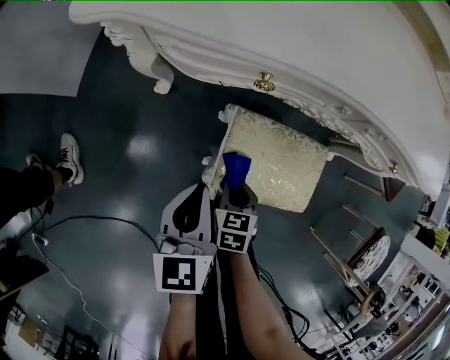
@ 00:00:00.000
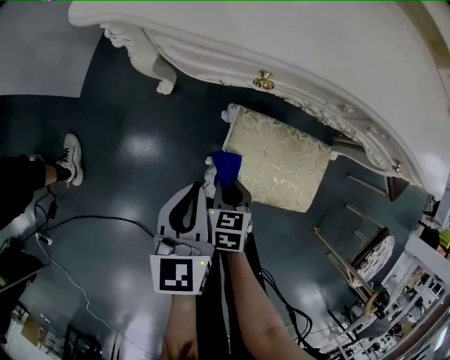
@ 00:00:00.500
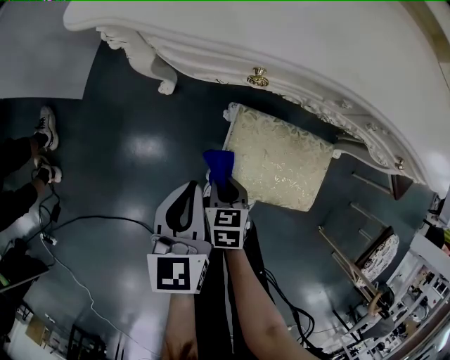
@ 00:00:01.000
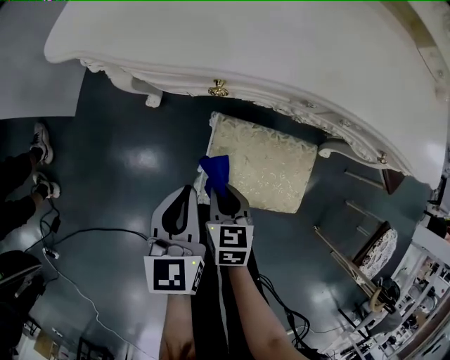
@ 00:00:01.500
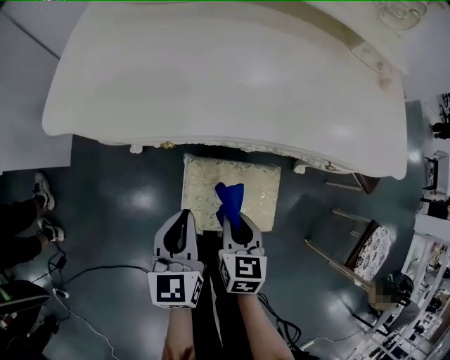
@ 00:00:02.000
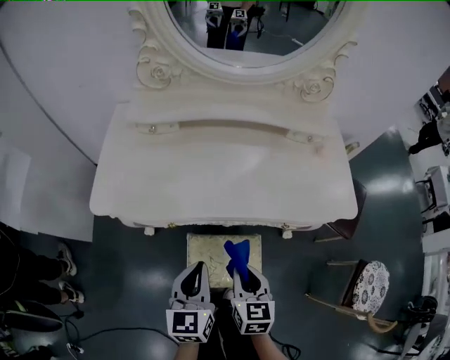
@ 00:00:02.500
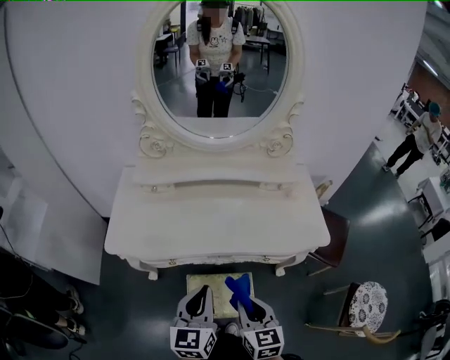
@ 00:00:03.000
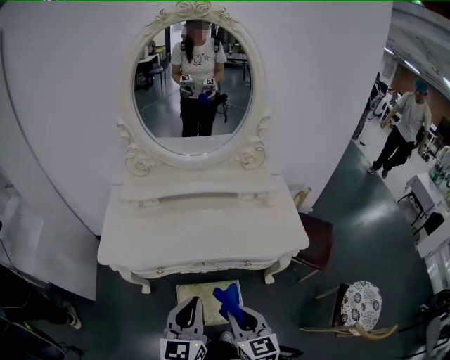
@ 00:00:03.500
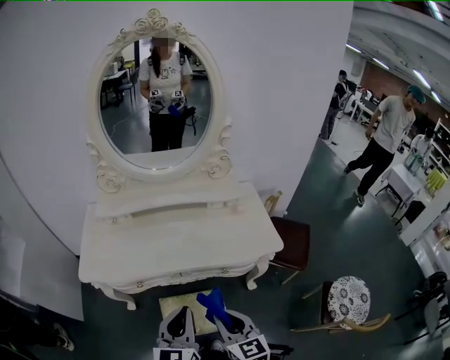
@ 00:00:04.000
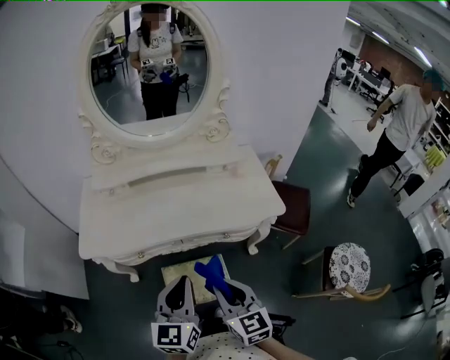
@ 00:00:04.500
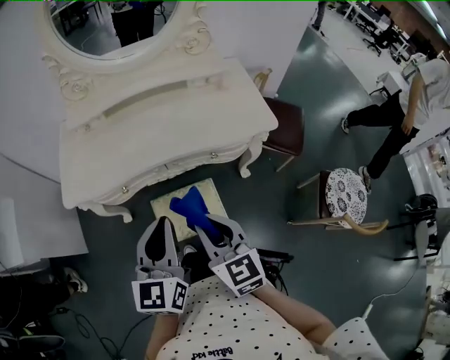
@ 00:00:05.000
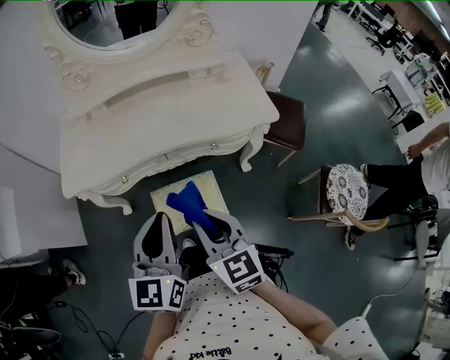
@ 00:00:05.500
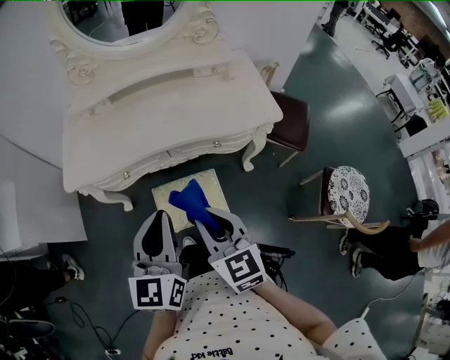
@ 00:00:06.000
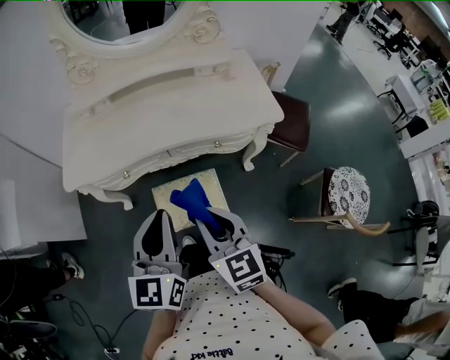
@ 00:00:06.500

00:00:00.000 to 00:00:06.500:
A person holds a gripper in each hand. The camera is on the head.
00:00:00.000 to 00:00:02.000: The right gripper heads upward and to the right, covering some 20 cm, and changes its angle by approximately 20 degrees. The left gripper shifts some 10 cm to the right and upward.
00:00:02.000 to 00:00:04.500: The left gripper travels upward and to the right by approximately 40 cm, and turns by about 30 degrees, while the right gripper moves upward, approximately 35 cm, and turns by approximately 30 degrees.
00:00:04.500 to 00:00:06.500: The left gripper ends up about 5 cm from where it was.

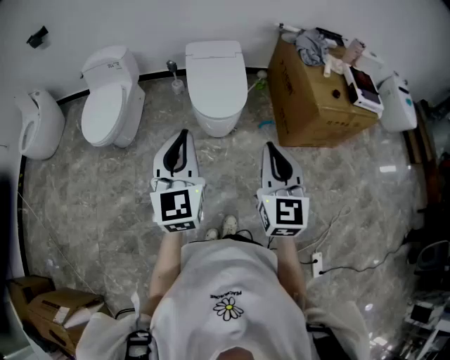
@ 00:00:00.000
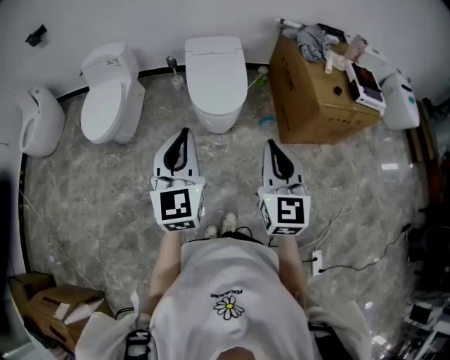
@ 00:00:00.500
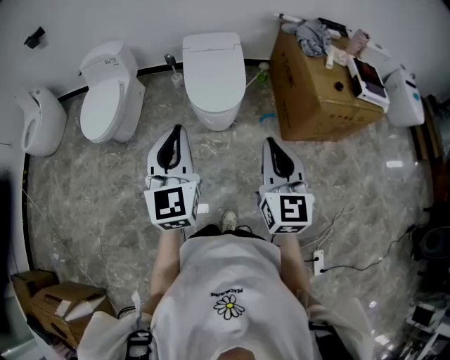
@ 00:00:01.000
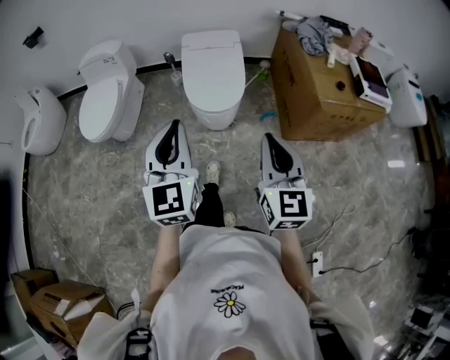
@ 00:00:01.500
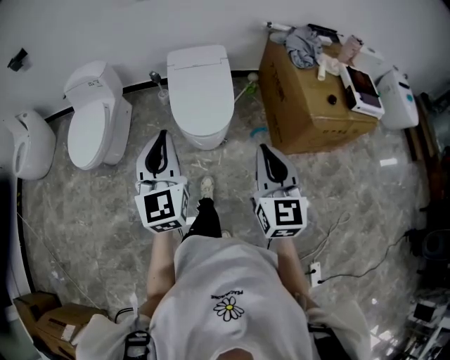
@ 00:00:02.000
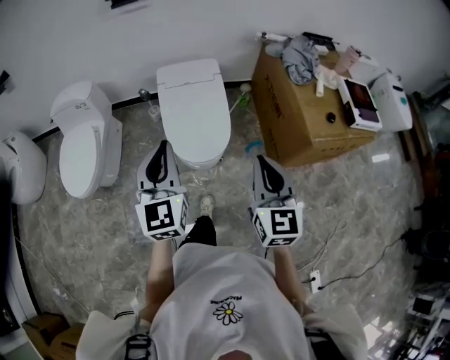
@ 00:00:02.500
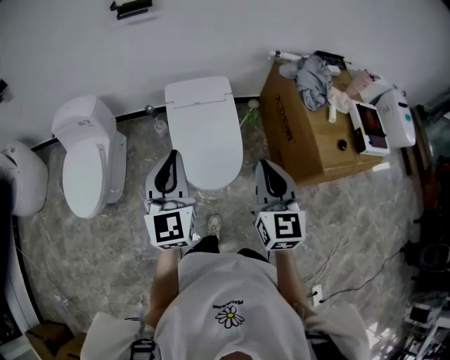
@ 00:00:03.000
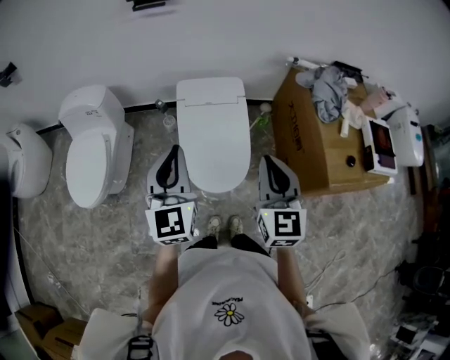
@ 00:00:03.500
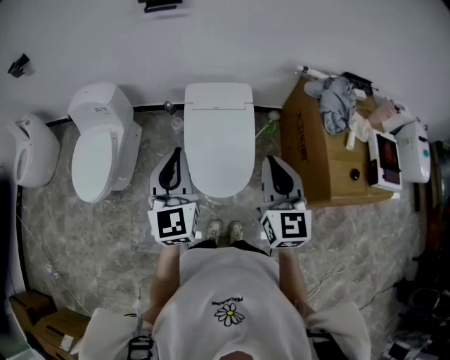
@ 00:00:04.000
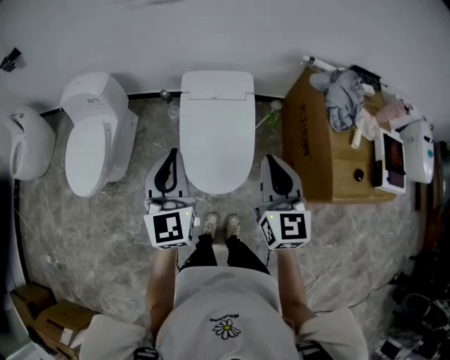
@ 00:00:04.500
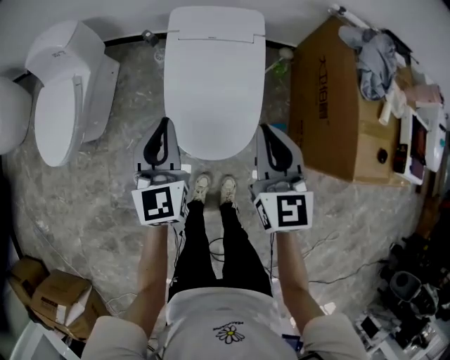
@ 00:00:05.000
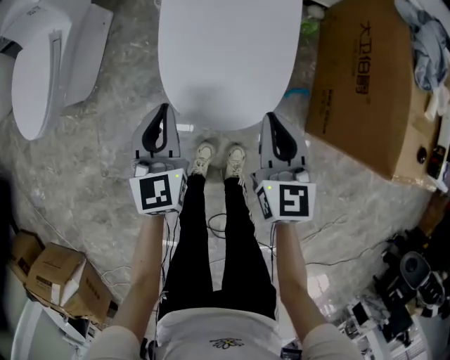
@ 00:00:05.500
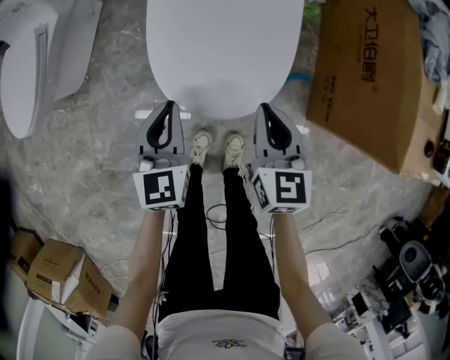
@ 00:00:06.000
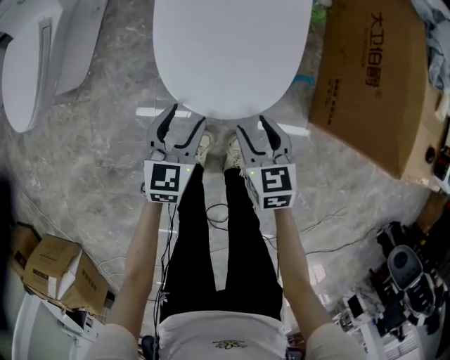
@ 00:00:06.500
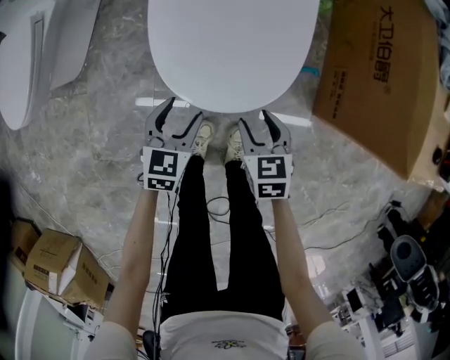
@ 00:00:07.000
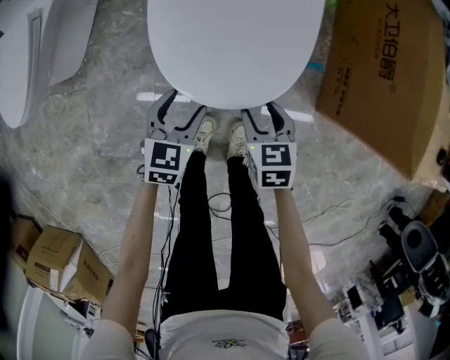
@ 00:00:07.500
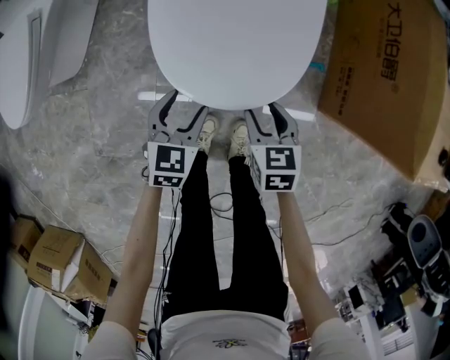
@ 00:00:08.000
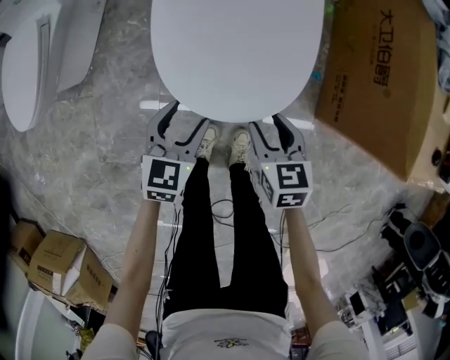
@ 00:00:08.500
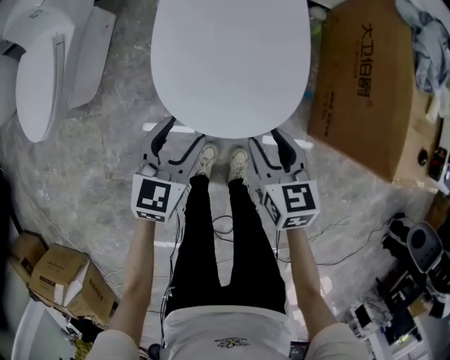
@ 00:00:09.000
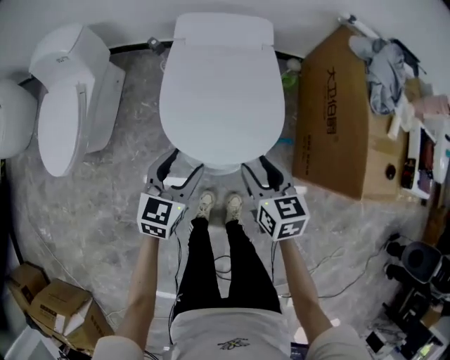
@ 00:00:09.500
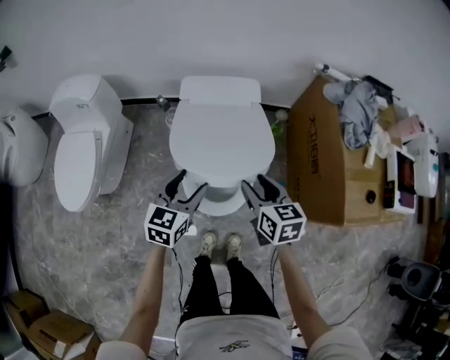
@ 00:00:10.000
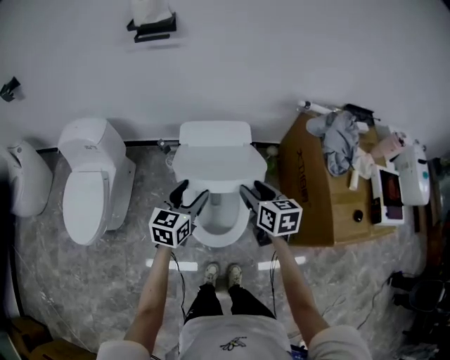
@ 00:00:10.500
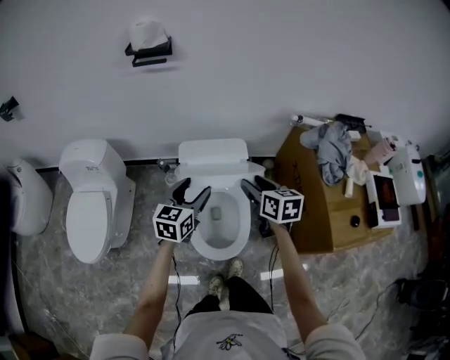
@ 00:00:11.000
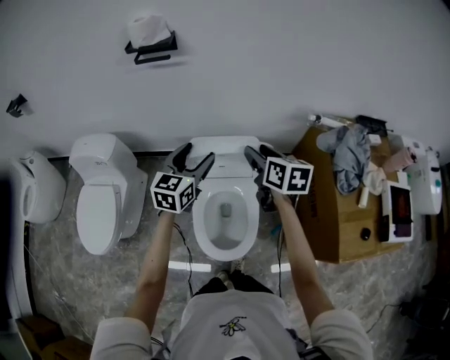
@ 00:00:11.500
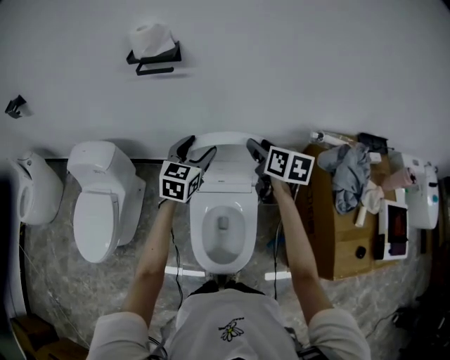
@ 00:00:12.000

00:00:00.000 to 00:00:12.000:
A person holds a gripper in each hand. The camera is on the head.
00:00:00.000 to 00:00:02.000: The left gripper moves forward, about 15 cm. The right gripper shifts about 15 cm forward and to the right.
00:00:02.000 to 00:00:04.000: The two grippers go roughly 30 cm forward.
00:00:04.000 to 00:00:06.000: Both grippers move downward, approximately 40 cm. The right gripper turns by roughly 30 degrees. Meanwhile the left gripper changes its angle by some 30 degrees.
00:00:06.000 to 00:00:08.000: Both grippers travel together downward, roughly 15 cm. The right gripper swivels roughly 20 degrees, and opens. Meanwhile the left gripper turns by some 20 degrees, and opens up.
00:00:08.000 to 00:00:10.000: The two grippers go roughly 30 cm upward. The right gripper changes its angle by approximately 20 degrees.
00:00:10.000 to 00:00:12.000: The grippers both shift forward and upward by approximately 40 cm.

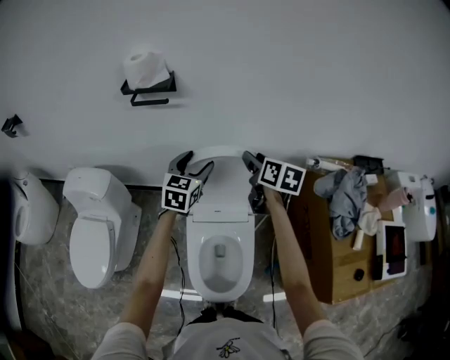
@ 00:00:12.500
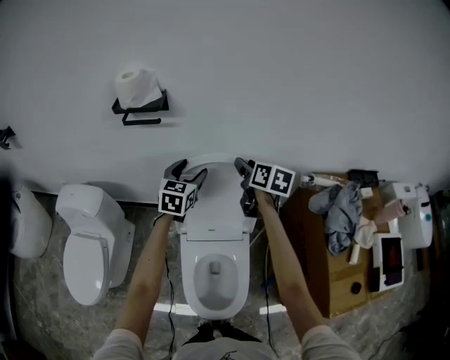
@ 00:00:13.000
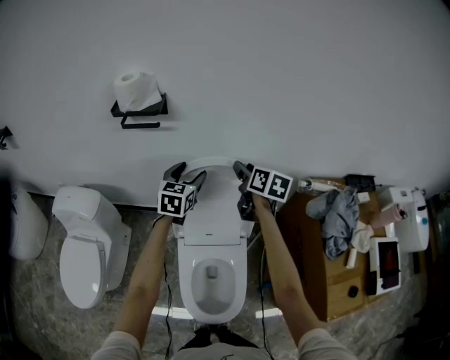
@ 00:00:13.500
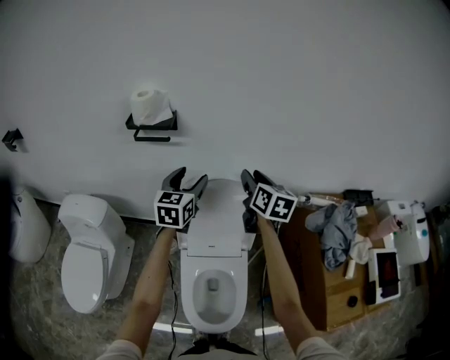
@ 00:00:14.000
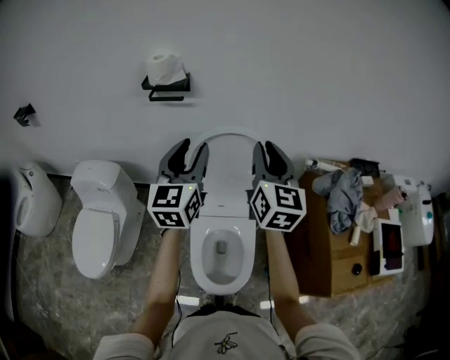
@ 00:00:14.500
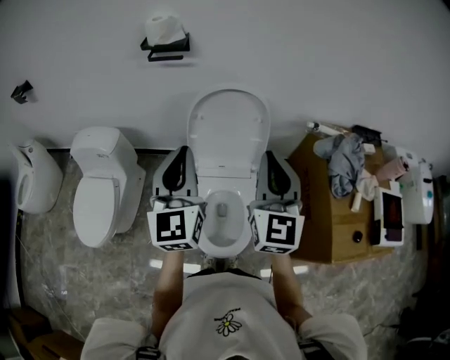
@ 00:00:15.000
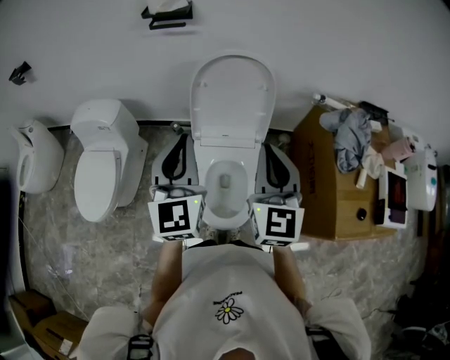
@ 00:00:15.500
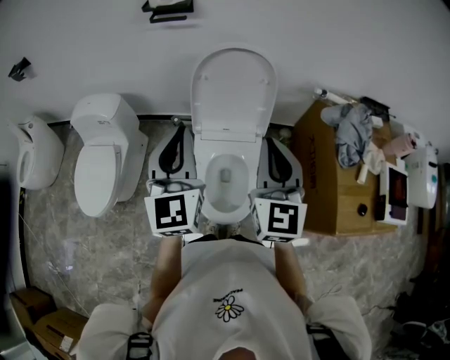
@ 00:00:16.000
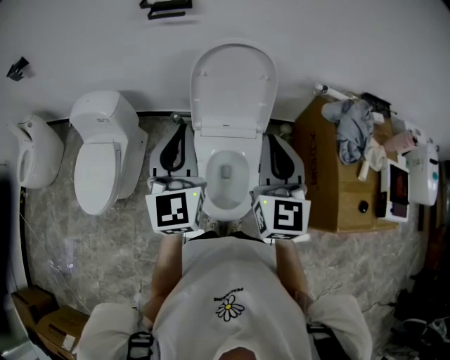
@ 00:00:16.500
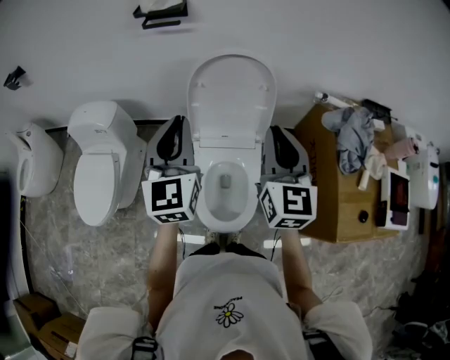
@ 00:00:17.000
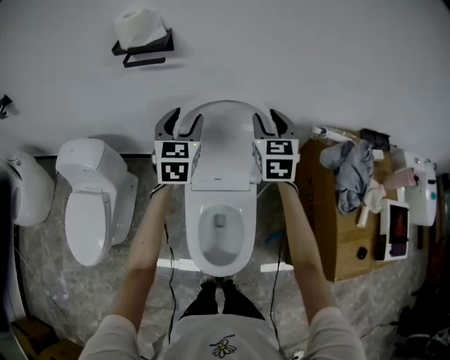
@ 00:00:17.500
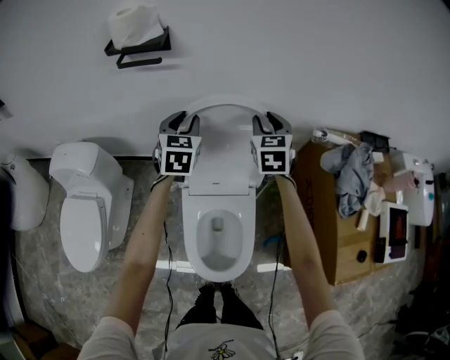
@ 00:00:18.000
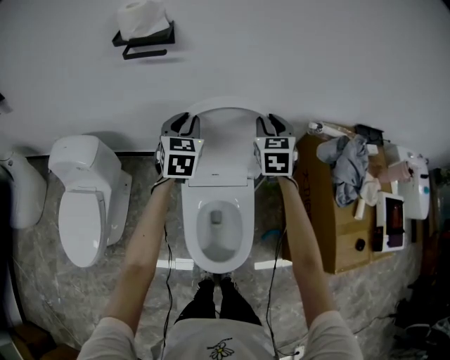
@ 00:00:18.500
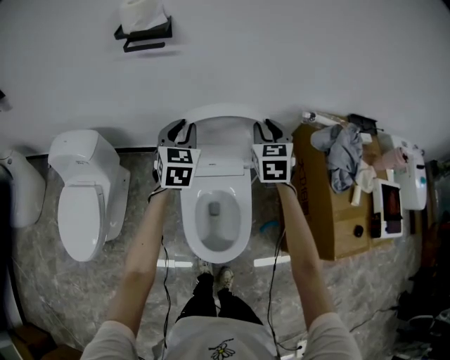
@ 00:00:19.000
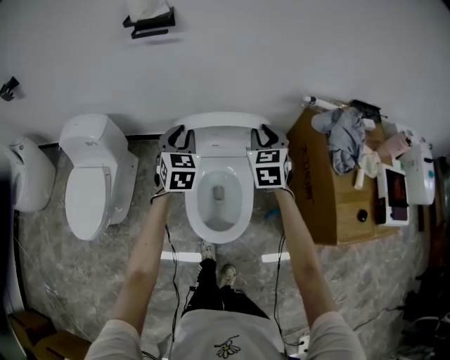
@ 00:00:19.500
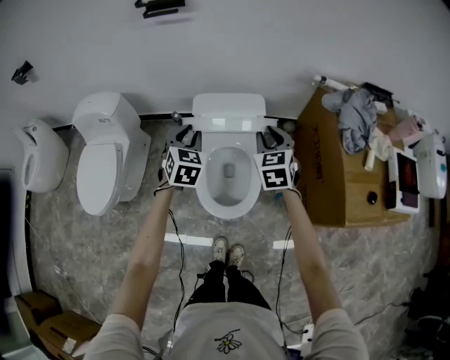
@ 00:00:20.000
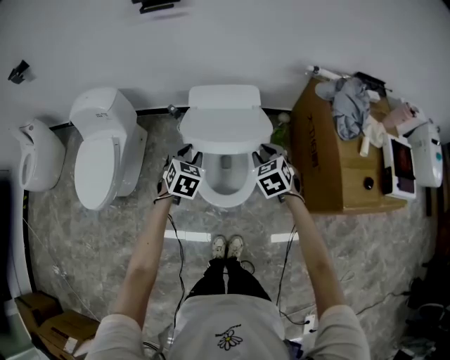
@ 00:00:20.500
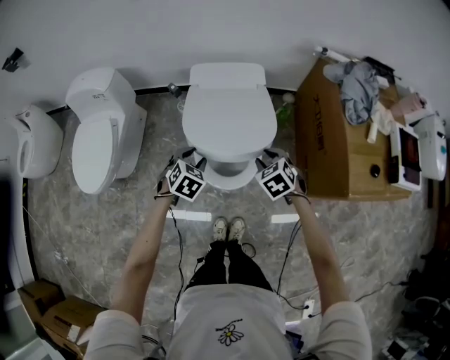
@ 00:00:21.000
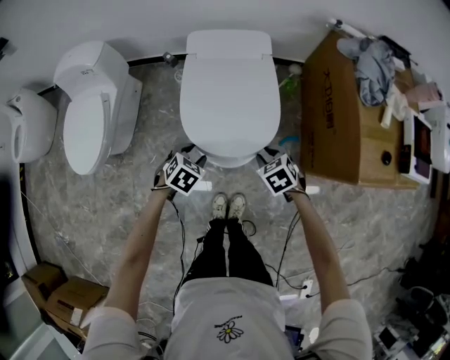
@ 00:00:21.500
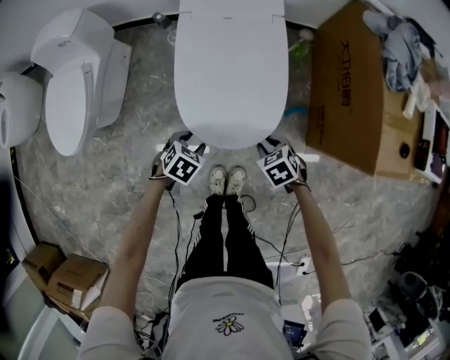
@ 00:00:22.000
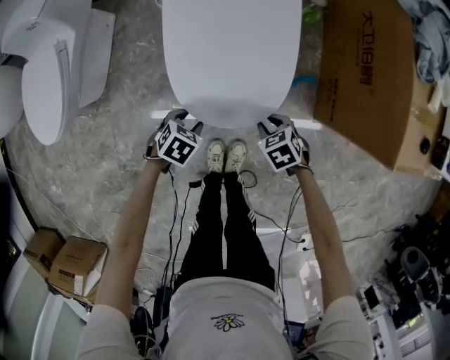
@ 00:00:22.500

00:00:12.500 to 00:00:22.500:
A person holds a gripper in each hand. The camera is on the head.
00:00:12.500 to 00:00:14.500: Both grippers move upward and backward, some 20 cm. The left gripper turns by approximately 30 degrees, and closes its fingers, while the right gripper swivels some 40 degrees, and closes up.
00:00:14.500 to 00:00:16.500: The two grippers go approximately 20 cm backward. The left gripper closes.
00:00:16.500 to 00:00:18.500: The two grippers go about 35 cm forward and downward. The right gripper changes its angle by roughly 30 degrees, and opens; the left gripper changes its angle by about 30 degrees, and opens and closes again.
00:00:18.500 to 00:00:20.500: Both grippers travel together backward and downward, approximately 40 cm. The right gripper turns by approximately 30 degrees; the left gripper turns by about 30 degrees.
00:00:20.500 to 00:00:22.500: The grippers both shift downward and backward by approximately 35 cm. The right gripper turns by roughly 30 degrees; the left gripper changes its angle by about 40 degrees.
